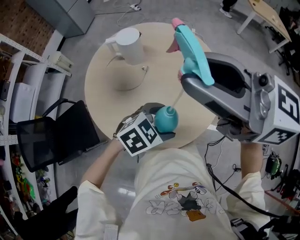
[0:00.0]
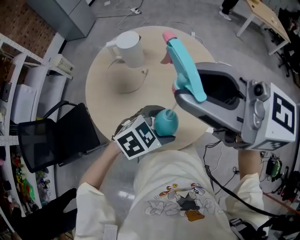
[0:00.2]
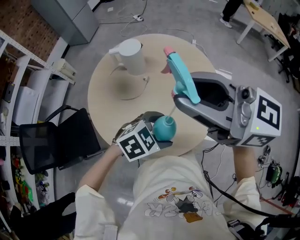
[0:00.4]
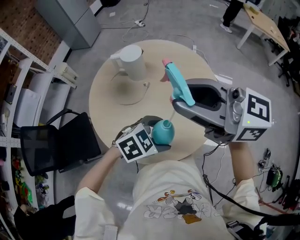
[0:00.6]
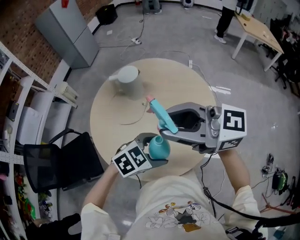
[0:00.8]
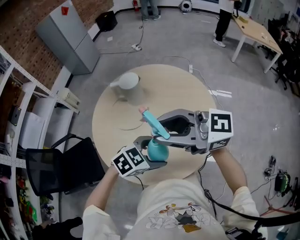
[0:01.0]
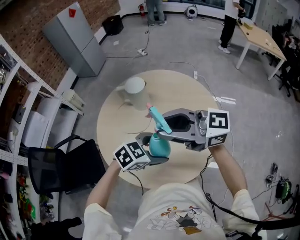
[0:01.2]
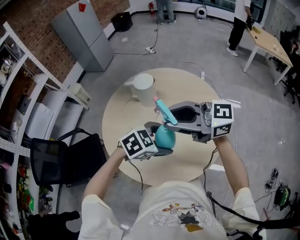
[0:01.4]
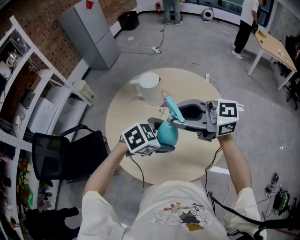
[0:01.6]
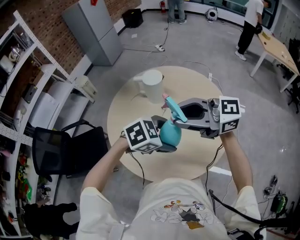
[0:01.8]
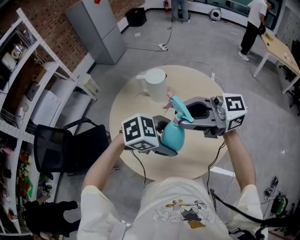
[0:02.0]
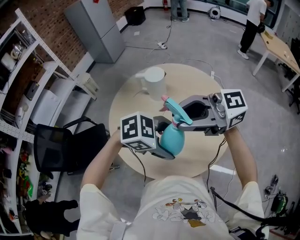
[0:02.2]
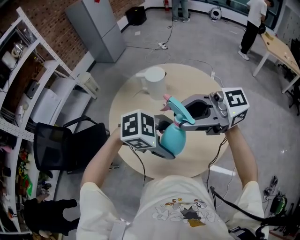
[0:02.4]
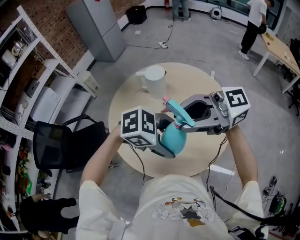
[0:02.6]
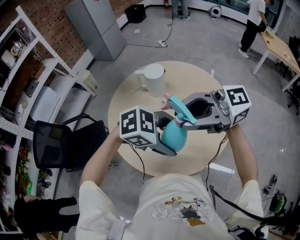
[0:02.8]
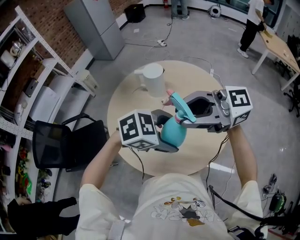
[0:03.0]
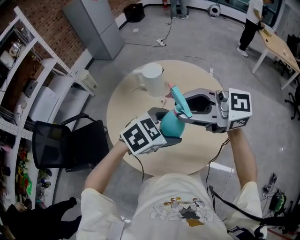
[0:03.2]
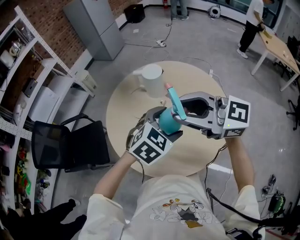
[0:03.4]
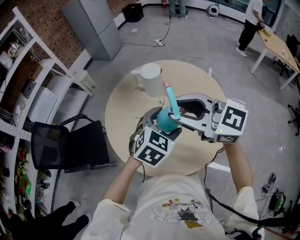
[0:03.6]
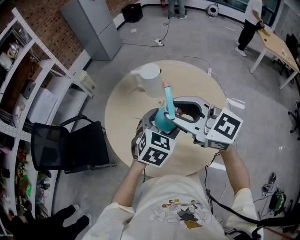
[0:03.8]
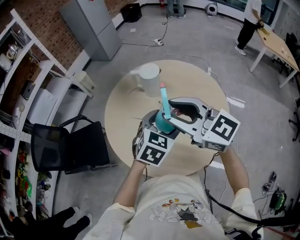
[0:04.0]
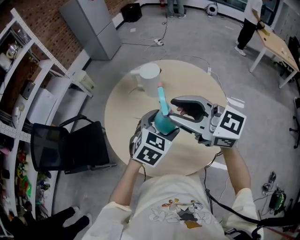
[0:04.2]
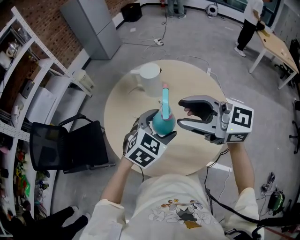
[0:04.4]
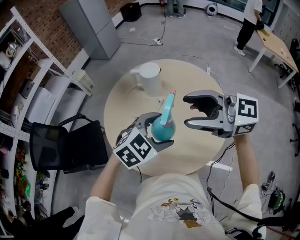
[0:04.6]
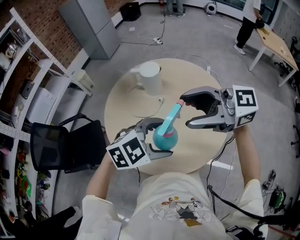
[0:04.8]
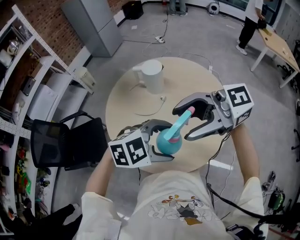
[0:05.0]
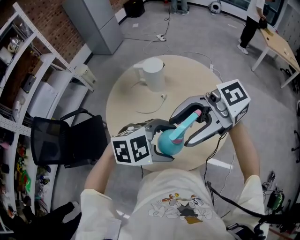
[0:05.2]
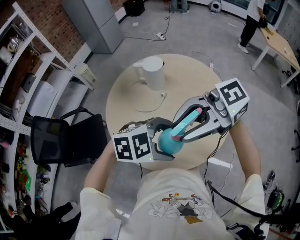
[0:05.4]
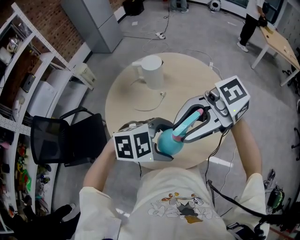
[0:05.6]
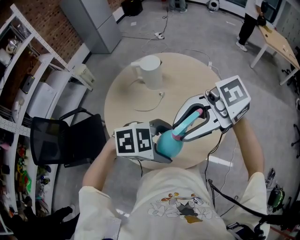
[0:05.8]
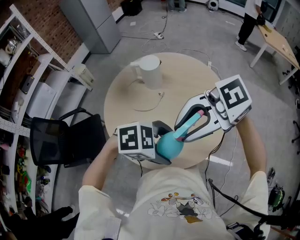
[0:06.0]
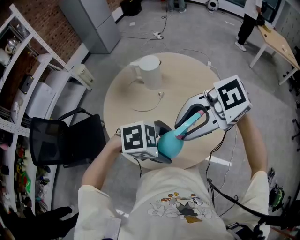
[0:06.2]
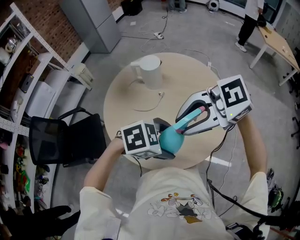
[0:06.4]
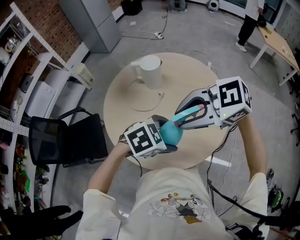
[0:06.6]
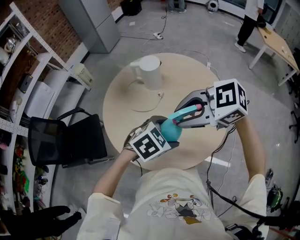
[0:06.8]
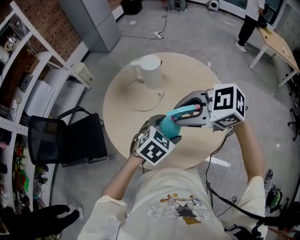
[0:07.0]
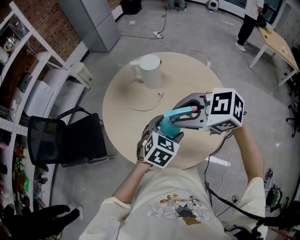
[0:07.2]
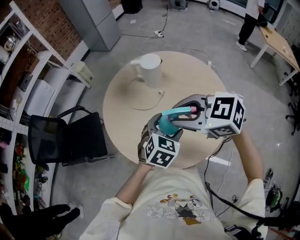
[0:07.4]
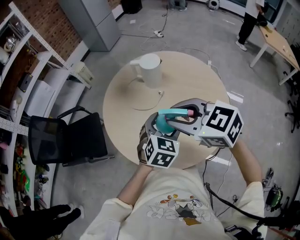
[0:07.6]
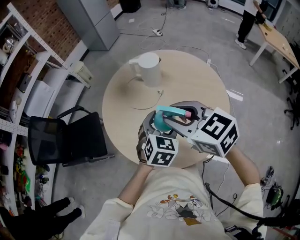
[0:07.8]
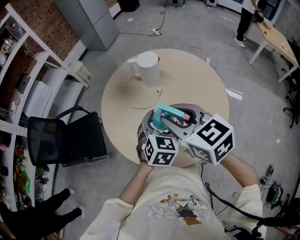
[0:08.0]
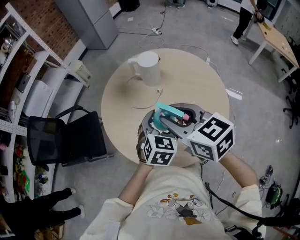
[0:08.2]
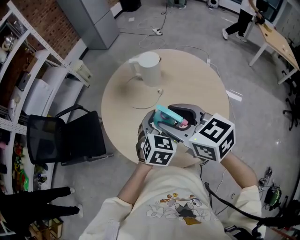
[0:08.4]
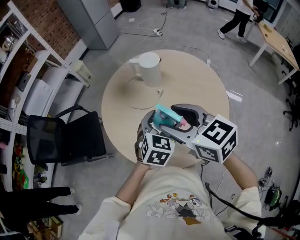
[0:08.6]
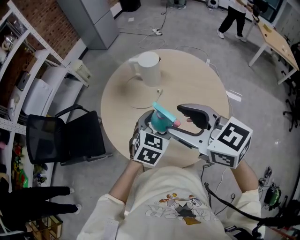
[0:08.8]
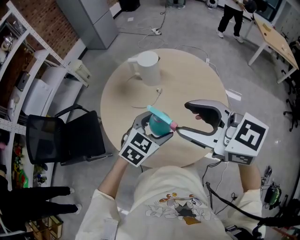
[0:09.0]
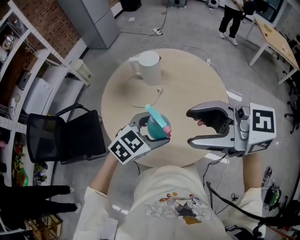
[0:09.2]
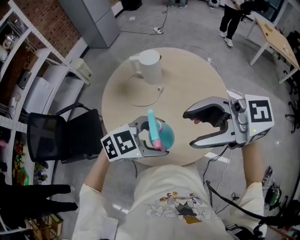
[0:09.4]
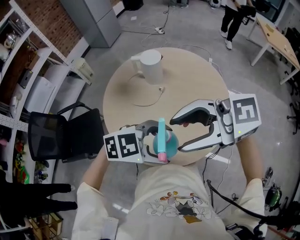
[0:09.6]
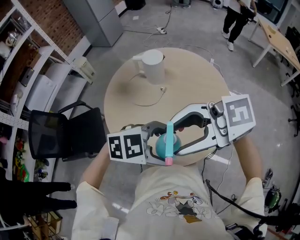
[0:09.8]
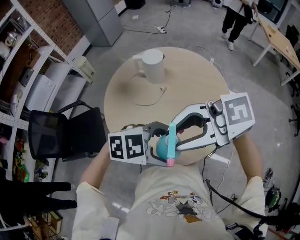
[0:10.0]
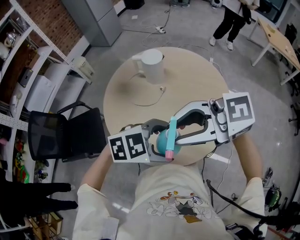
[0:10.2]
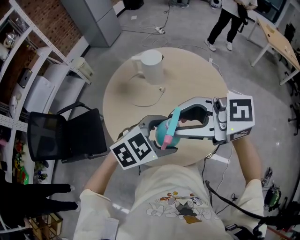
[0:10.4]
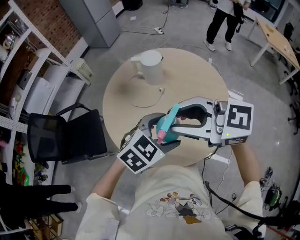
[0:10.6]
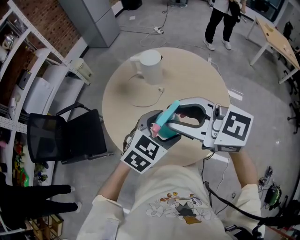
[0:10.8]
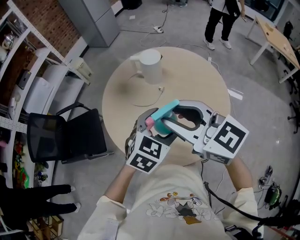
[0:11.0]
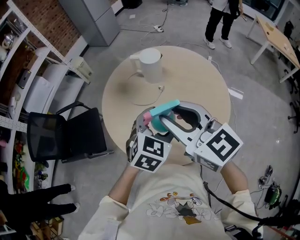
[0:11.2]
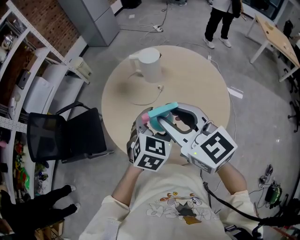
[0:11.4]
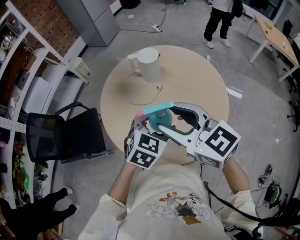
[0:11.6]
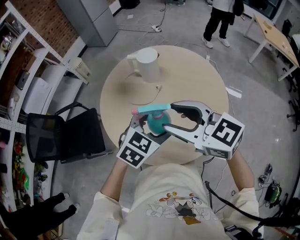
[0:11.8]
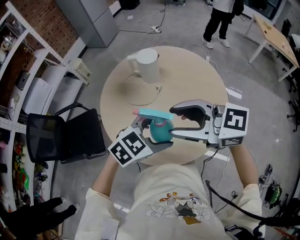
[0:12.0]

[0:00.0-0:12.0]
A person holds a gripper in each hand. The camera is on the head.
0:00.0 to 0:01.6: The left gripper moves upward, some 5 cm. Meanwhile the right gripper shifts about 10 cm downward, and changes its angle by approximately 20 degrees.
0:01.6 to 0:03.0: The right gripper shifts by roughly 5 cm. Meanwhile the left gripper is displaced upward by approximately 5 cm.
0:03.0 to 0:04.4: The right gripper swivels roughly 20 degrees. Meanwhile the left gripper ends up roughly 10 cm from where it was, and turns by about 40 degrees.
0:04.4 to 0:06.0: The left gripper ends up about 15 cm from where it was, and rotates some 50 degrees. The right gripper changes place by roughly 10 cm, and rotates some 50 degrees.
0:06.0 to 0:07.6: The right gripper ends up approximately 10 cm from where it was, and swivels approximately 50 degrees. Meanwhile the left gripper changes place by some 15 cm, and rotates about 70 degrees.
0:07.6 to 0:09.0: The right gripper moves upward, about 5 cm, and opens. The left gripper rotates approximately 20 degrees.
0:09.0 to 0:10.4: The left gripper rotates approximately 20 degrees. Meanwhile the right gripper turns by some 30 degrees, and closes up.

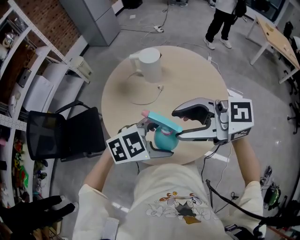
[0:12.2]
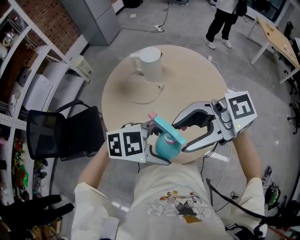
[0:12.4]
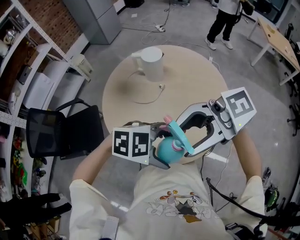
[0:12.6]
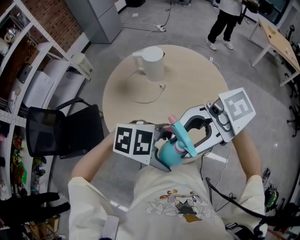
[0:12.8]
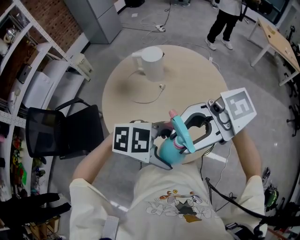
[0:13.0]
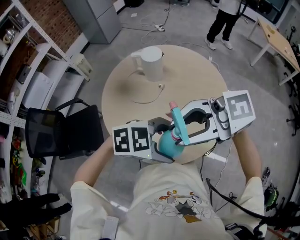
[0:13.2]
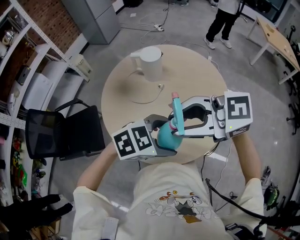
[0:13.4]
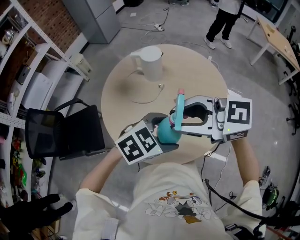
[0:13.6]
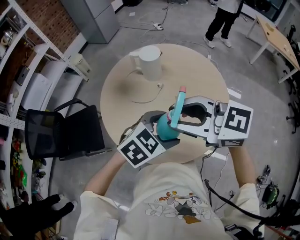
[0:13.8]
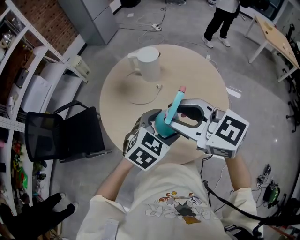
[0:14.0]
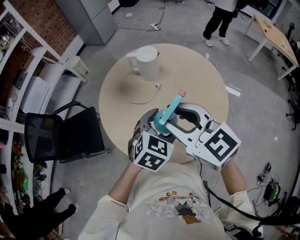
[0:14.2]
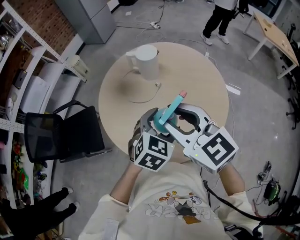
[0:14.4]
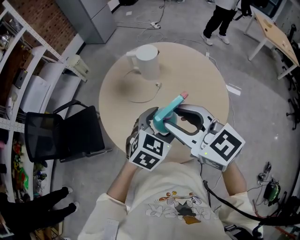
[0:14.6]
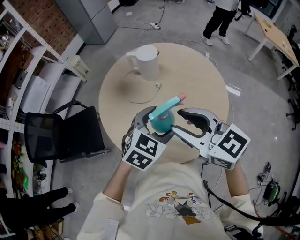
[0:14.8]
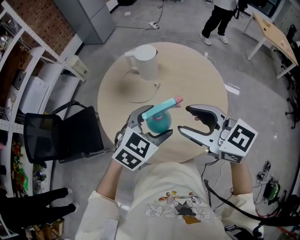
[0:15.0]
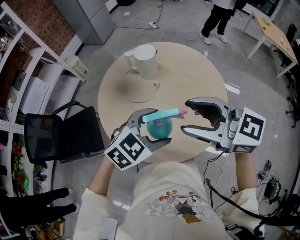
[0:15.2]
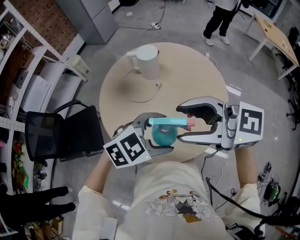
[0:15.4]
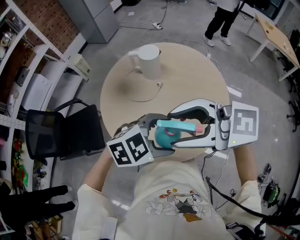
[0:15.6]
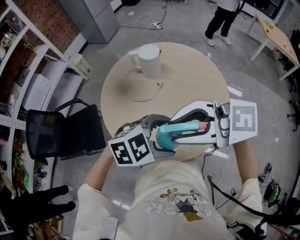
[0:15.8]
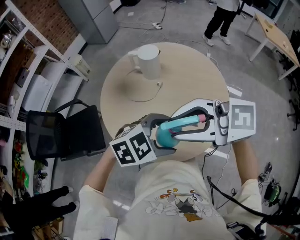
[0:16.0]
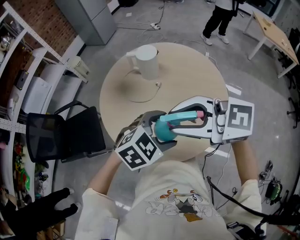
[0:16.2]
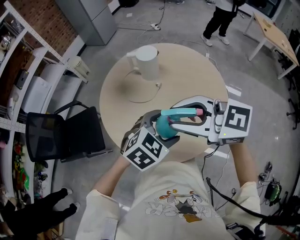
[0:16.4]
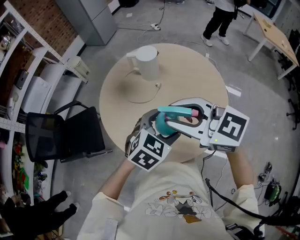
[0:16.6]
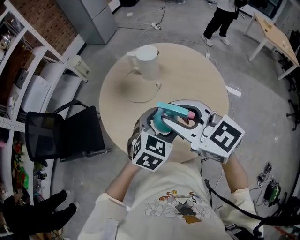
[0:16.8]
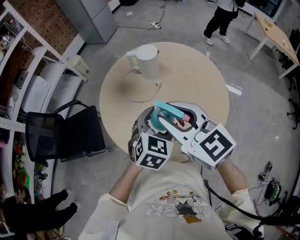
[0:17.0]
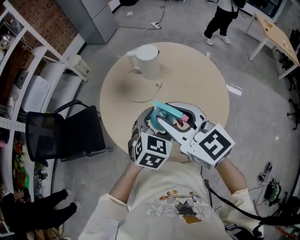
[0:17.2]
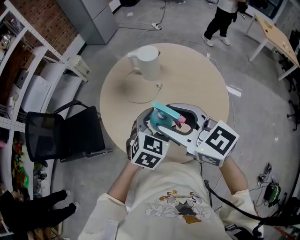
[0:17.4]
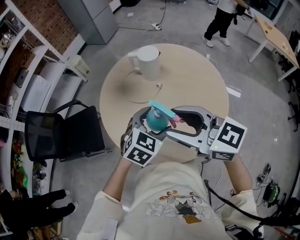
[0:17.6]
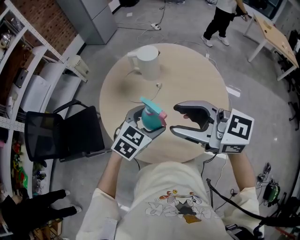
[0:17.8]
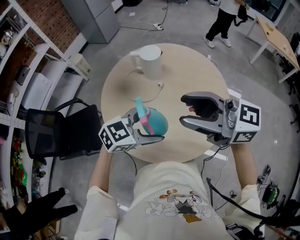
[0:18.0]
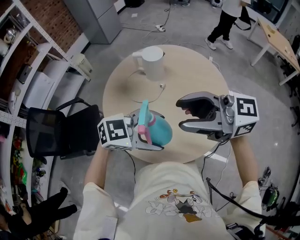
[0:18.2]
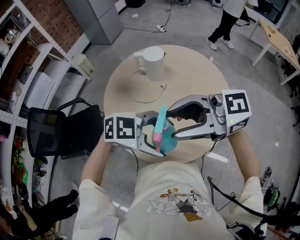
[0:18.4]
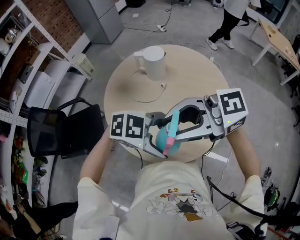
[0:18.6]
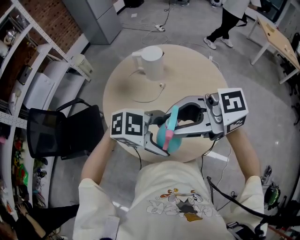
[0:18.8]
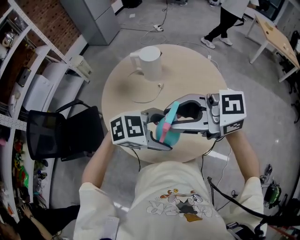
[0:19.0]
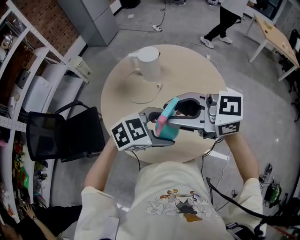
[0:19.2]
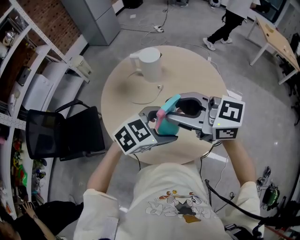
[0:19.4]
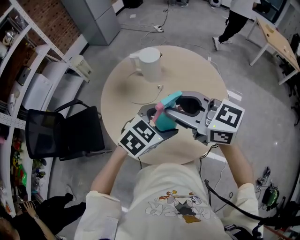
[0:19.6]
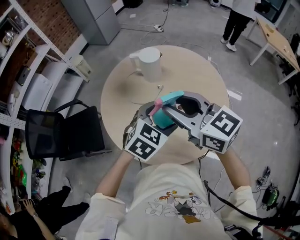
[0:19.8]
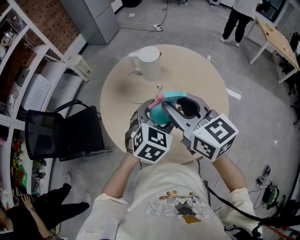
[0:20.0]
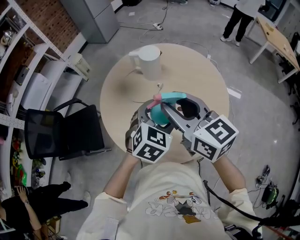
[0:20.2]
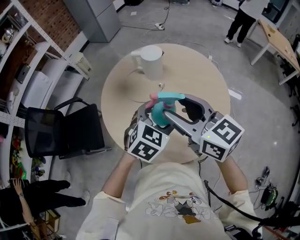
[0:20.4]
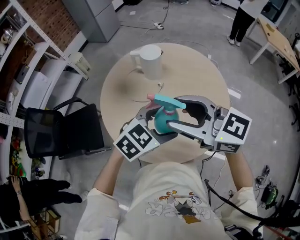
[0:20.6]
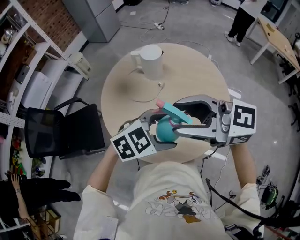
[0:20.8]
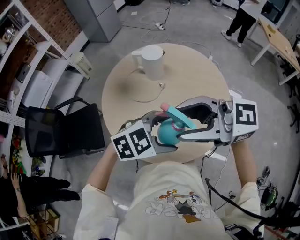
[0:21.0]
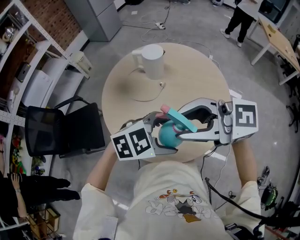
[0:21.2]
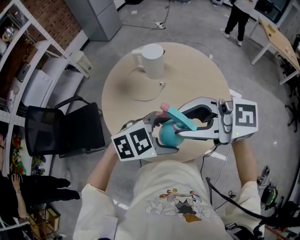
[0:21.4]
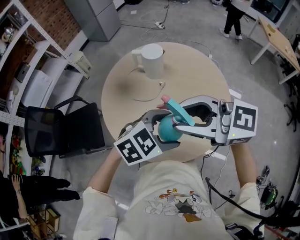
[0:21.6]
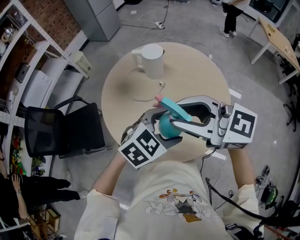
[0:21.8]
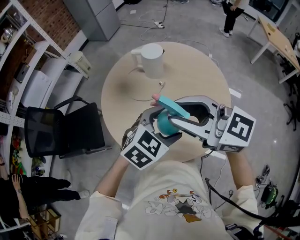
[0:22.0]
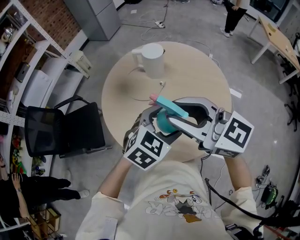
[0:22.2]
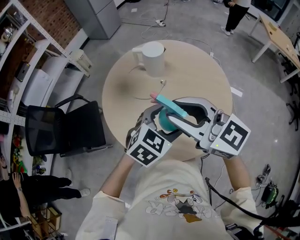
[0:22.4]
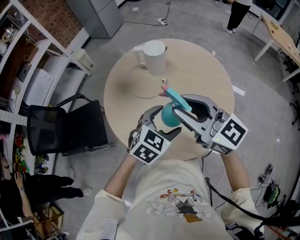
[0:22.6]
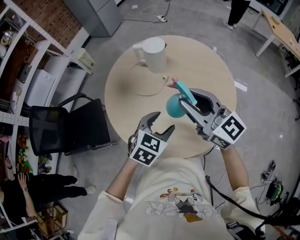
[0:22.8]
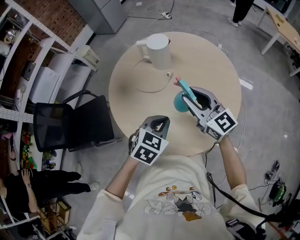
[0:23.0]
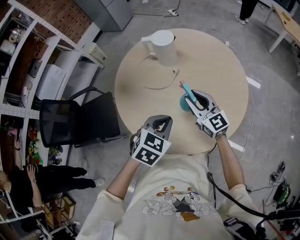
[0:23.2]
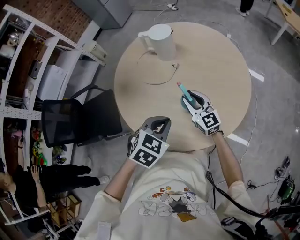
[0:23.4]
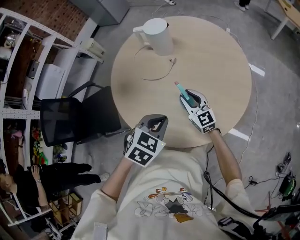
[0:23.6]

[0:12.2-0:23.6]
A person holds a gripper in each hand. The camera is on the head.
0:13.6 to 0:15.0: The left gripper ends up roughly 5 cm from where it was, and rotates some 20 degrees; the right gripper ends up about 5 cm from where it was, and changes its angle by approximately 30 degrees.
0:15.0 to 0:16.4: The right gripper changes its angle by approximately 20 degrees.
0:16.4 to 0:17.8: The left gripper moves approximately 5 cm.
0:17.8 to 0:19.4: The left gripper swivels some 20 degrees.
0:20.8 to 0:22.2: The right gripper closes its fingers. Meanwhile the left gripper turns by approximately 30 degrees.
0:22.2 to 0:23.6: The right gripper travels downward by approximately 35 cm, and changes its angle by roughly 30 degrees. Meanwhile the left gripper shifts about 10 cm downward, and closes.
